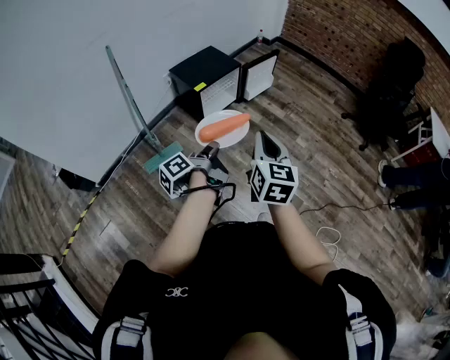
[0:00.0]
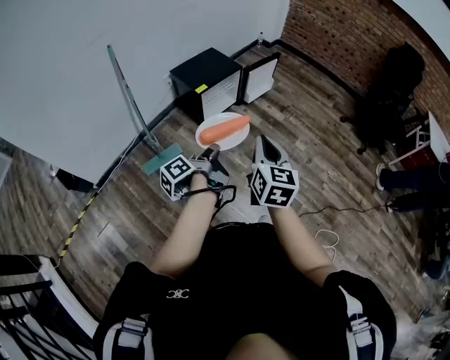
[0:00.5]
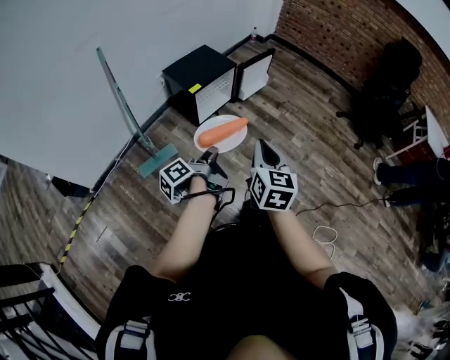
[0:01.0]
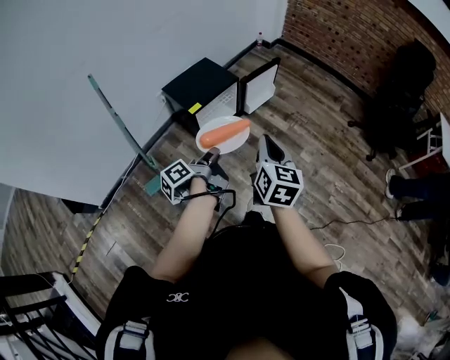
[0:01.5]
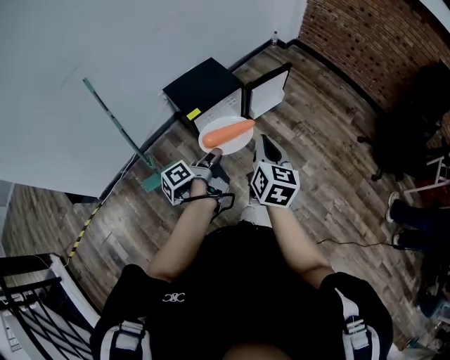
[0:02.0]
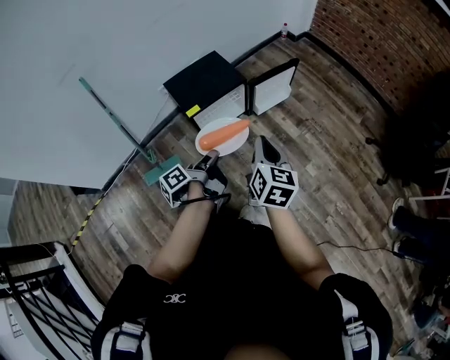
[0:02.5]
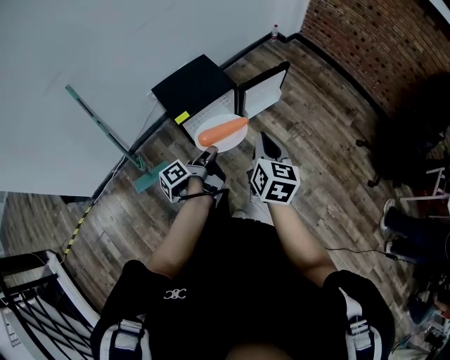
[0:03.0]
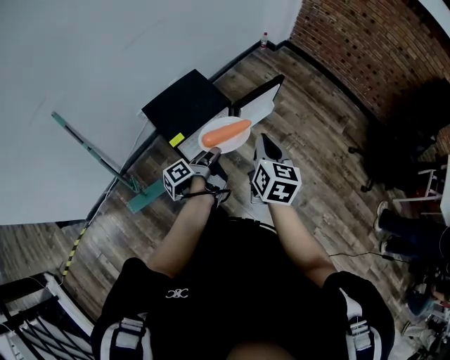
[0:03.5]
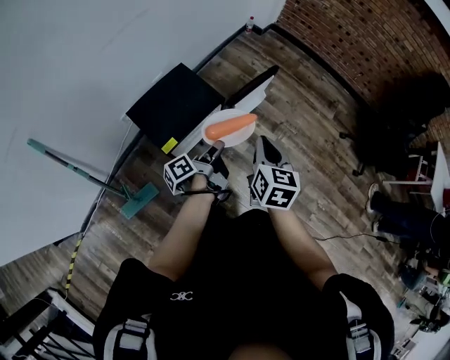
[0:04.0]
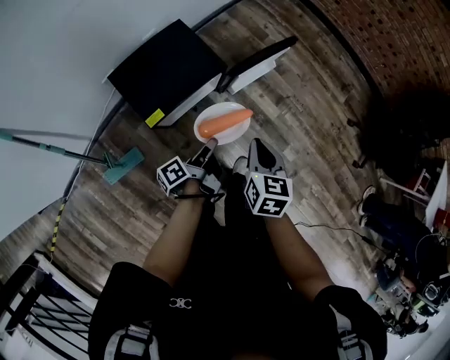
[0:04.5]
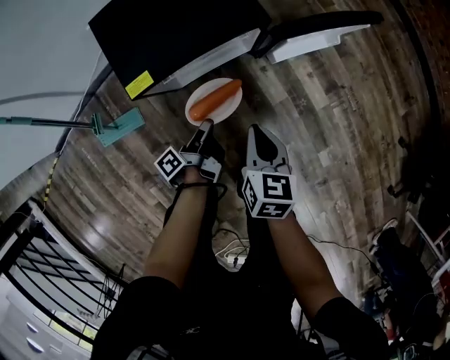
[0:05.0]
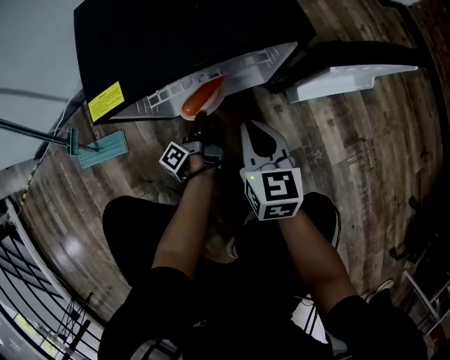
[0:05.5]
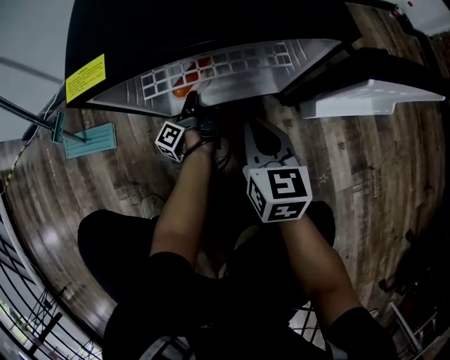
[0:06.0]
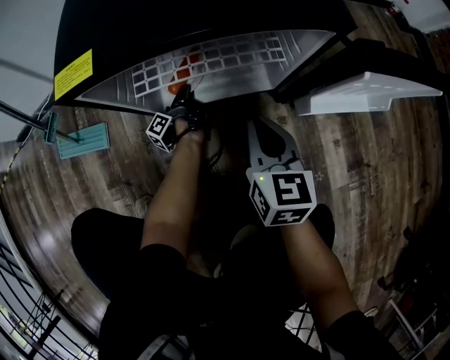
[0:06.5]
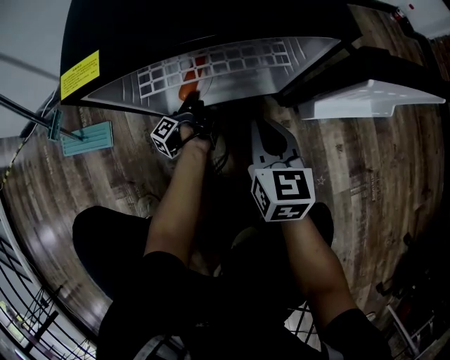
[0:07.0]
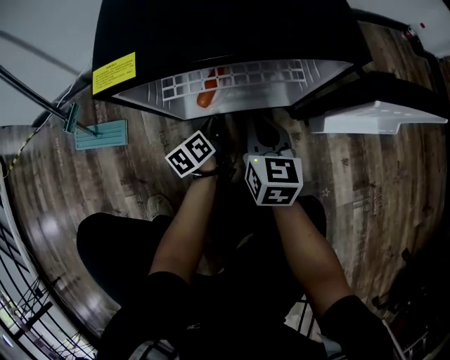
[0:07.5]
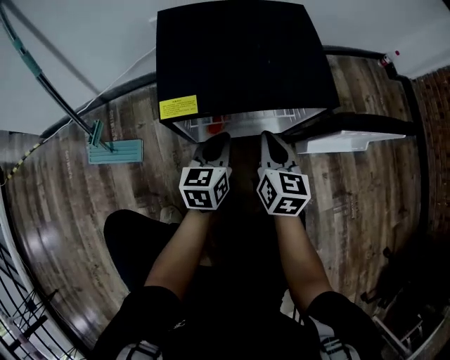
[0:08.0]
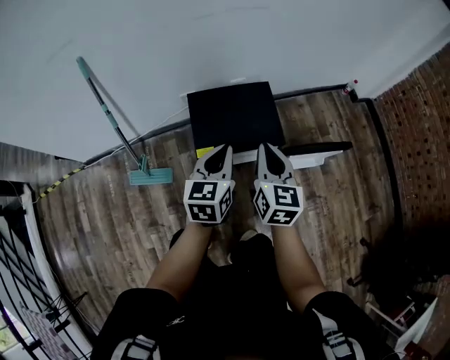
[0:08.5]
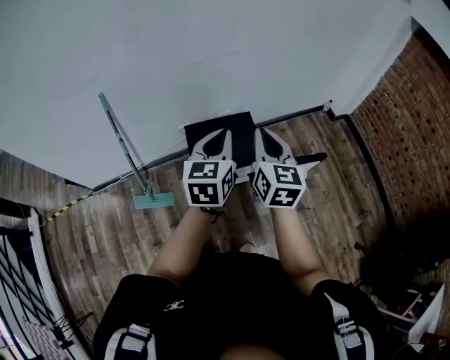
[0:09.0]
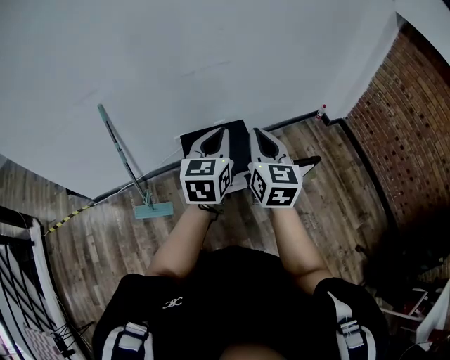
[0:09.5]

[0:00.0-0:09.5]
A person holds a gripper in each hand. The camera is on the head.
0:00.0 to 0:02.0: The right gripper ends up roughly 30 cm from where it was.
0:02.0 to 0:04.0: The right gripper moves approximately 25 cm.
0:04.0 to 0:05.5: The right gripper moves downward, roughly 50 cm, and rotates about 40 degrees.
0:05.5 to 0:07.5: The right gripper travels downward by some 10 cm.
0:07.5 to 0:09.5: The right gripper moves upward, some 80 cm, and swivels approximately 20 degrees.

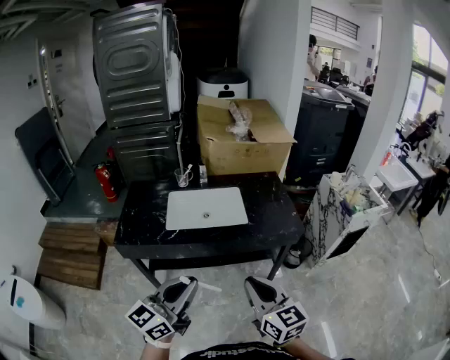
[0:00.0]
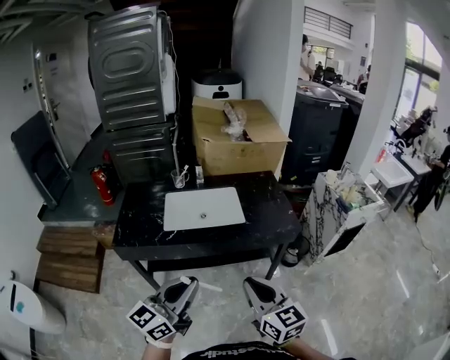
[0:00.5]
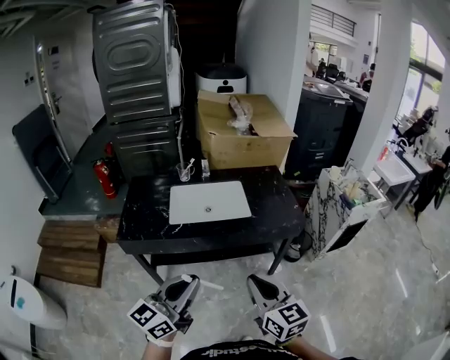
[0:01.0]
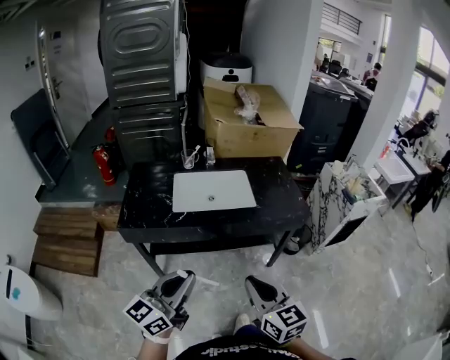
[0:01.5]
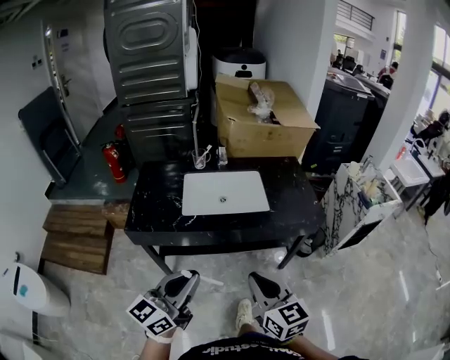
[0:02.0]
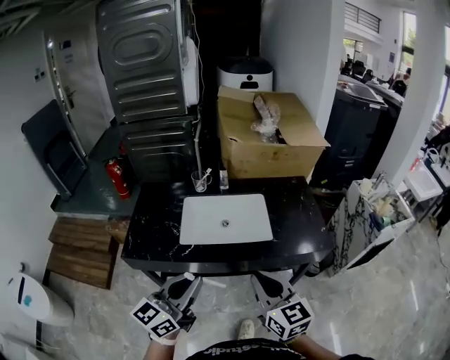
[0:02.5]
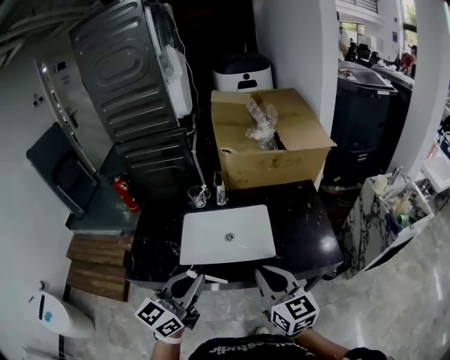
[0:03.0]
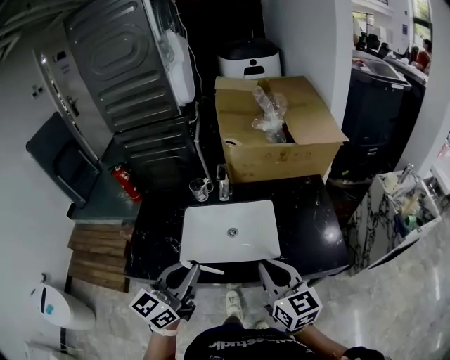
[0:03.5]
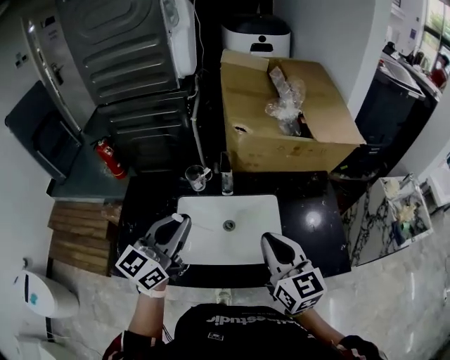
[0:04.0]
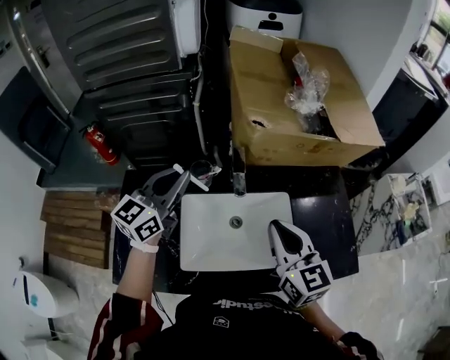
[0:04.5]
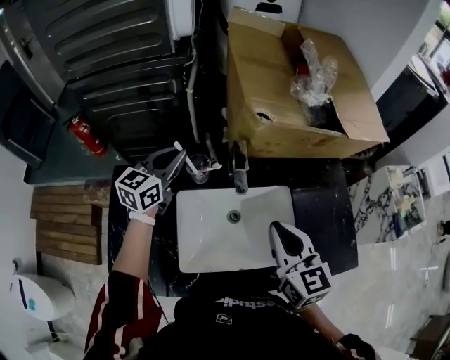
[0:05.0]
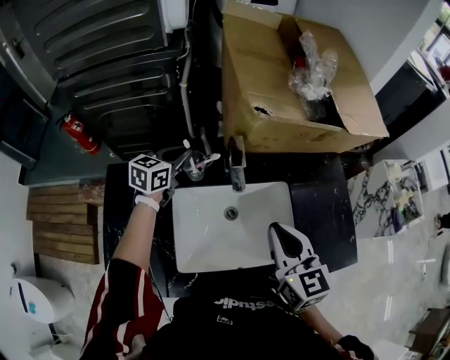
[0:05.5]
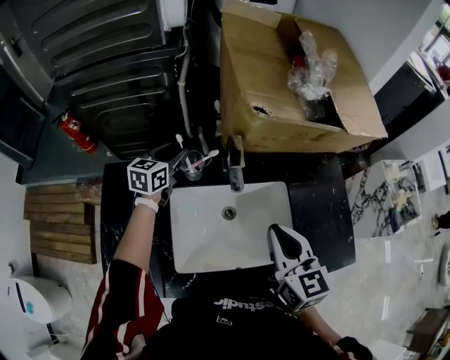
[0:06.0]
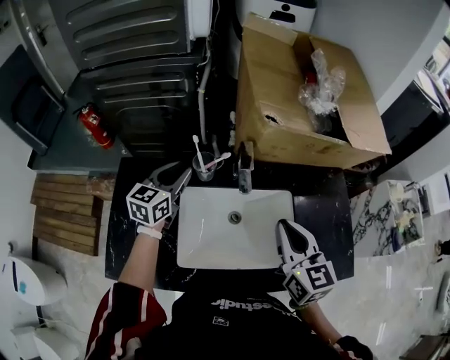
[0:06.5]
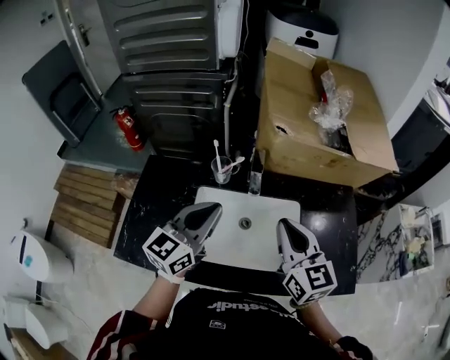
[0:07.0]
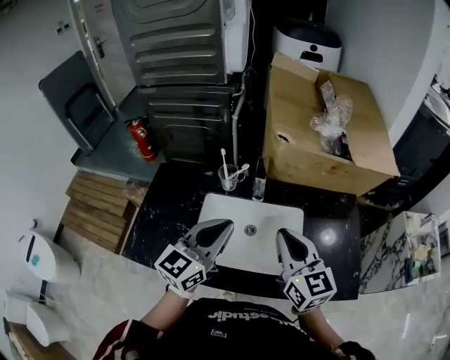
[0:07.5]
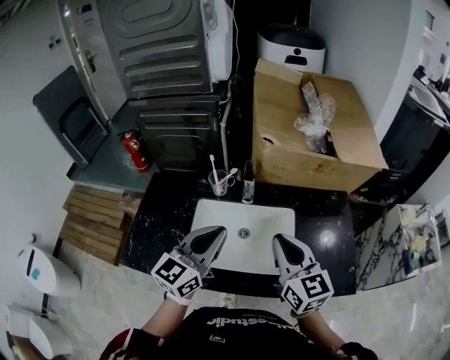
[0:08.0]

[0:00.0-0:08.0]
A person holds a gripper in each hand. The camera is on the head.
0:00.0 to 0:02.0: The grippers both shift to the left by about 10 cm.
0:02.0 to 0:04.0: The pair of grippers is taken forward, about 40 cm.
0:04.0 to 0:06.0: The right gripper is displaced forward, to the left and downward by roughly 15 cm. Meanwhile the left gripper moves forward and downward, approximately 40 cm, rotates approximately 30 degrees, and opens its fingers.
0:06.0 to 0:08.0: The right gripper shifts roughly 10 cm backward and upward, while the left gripper moves backward and upward, roughly 40 cm, swivels approximately 30 degrees, and closes up.

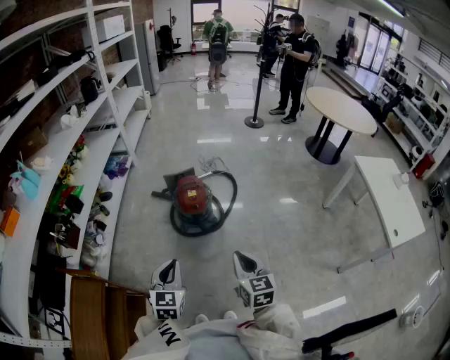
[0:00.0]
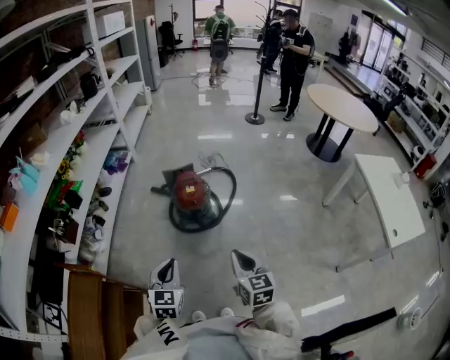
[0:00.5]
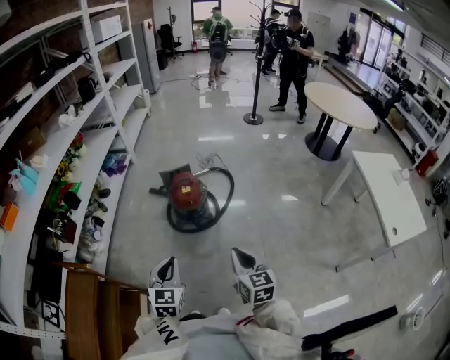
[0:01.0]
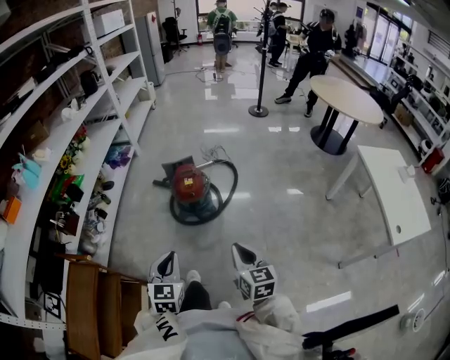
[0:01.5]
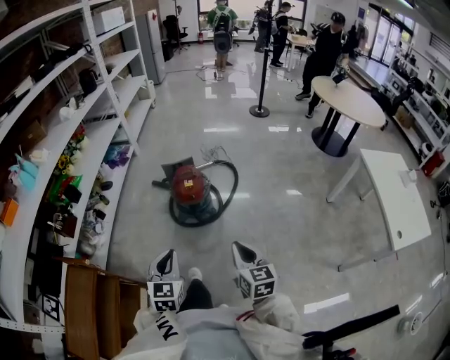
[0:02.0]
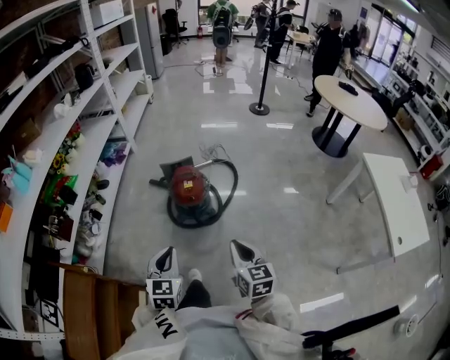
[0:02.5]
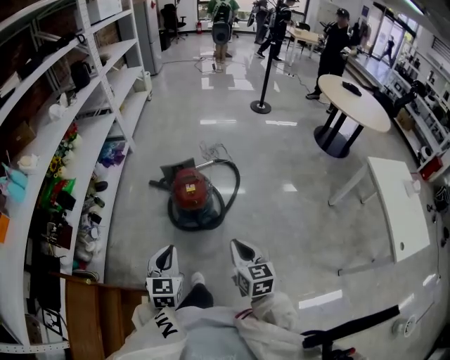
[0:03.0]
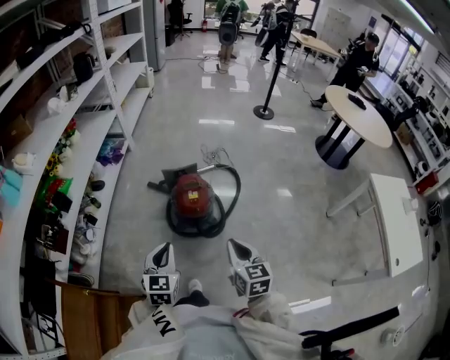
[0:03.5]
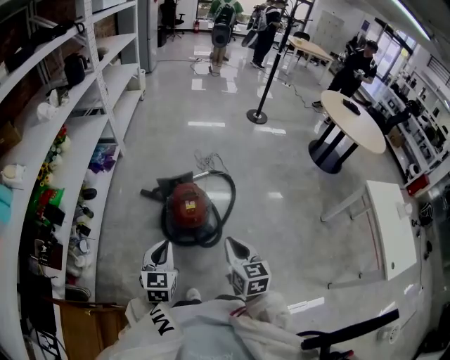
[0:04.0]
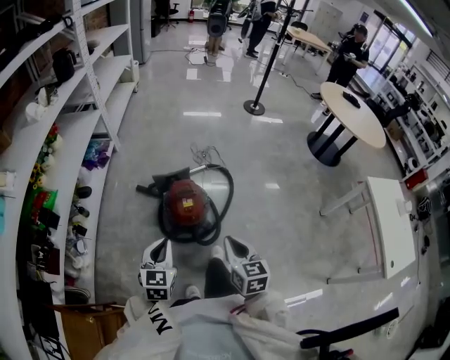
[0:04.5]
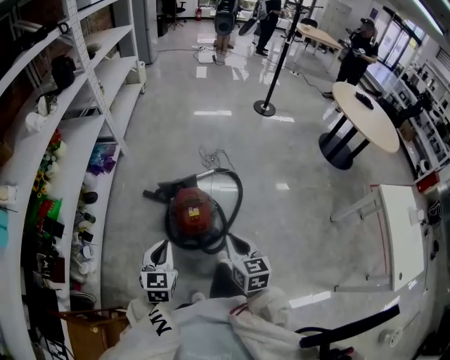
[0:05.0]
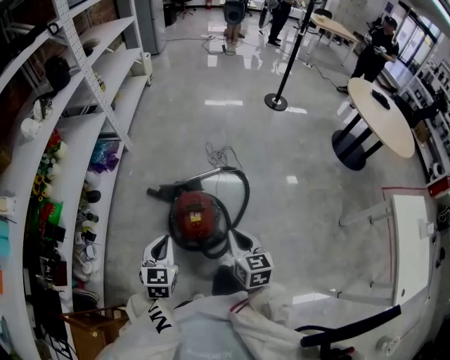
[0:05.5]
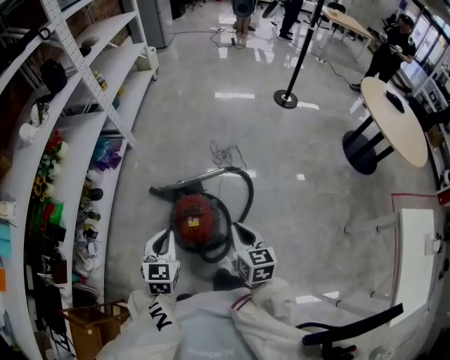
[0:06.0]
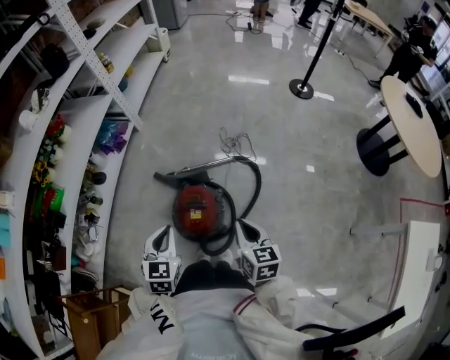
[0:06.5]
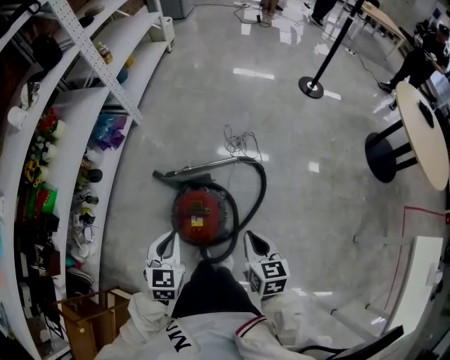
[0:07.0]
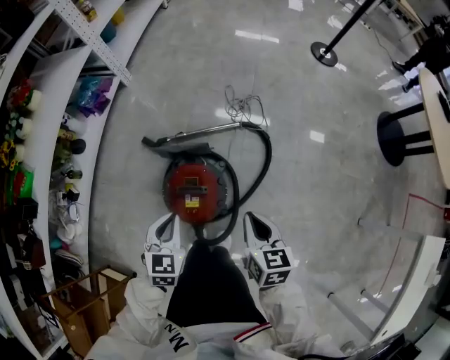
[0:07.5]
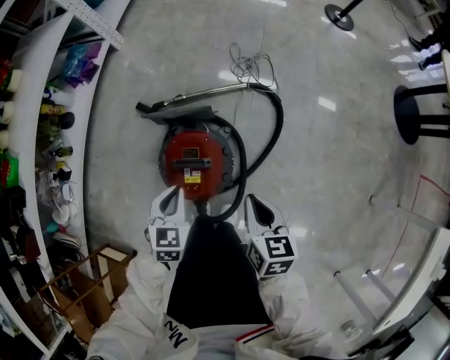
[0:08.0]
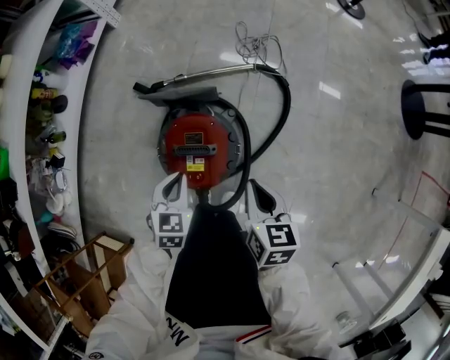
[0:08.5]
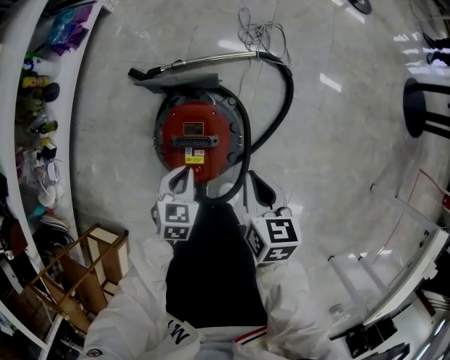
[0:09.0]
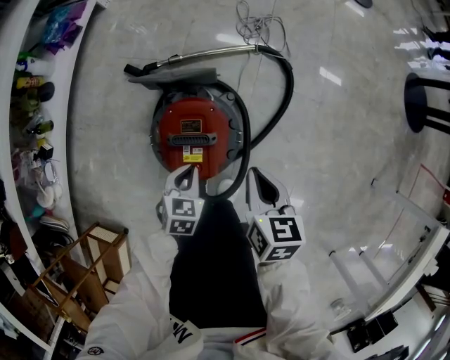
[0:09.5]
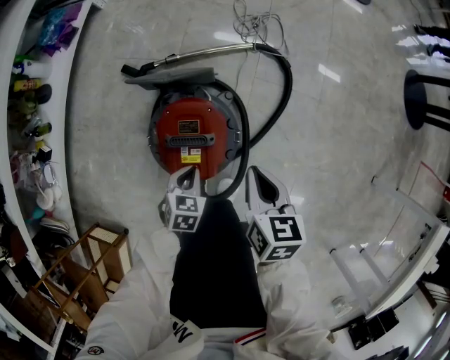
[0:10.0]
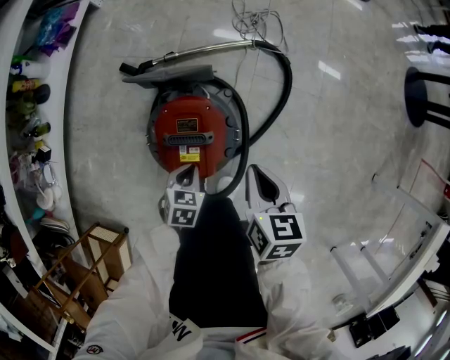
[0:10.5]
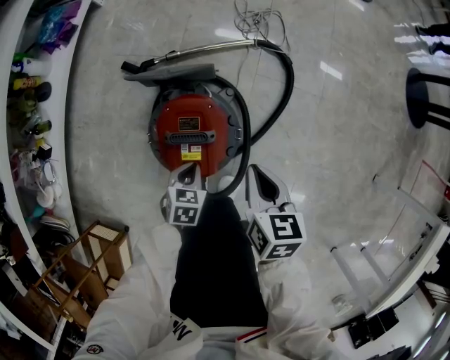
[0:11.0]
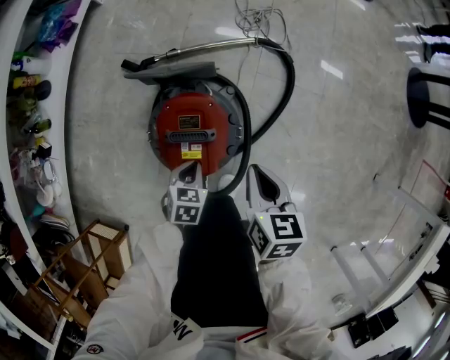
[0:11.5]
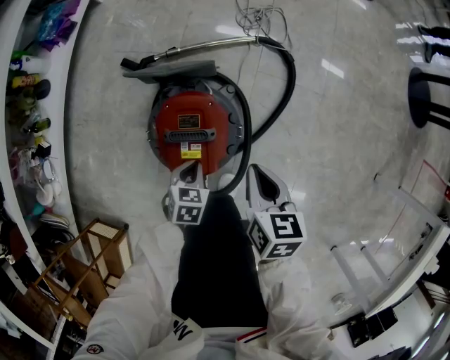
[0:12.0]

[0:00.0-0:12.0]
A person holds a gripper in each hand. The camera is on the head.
0:00.0 to 0:02.0: The grippers both shift to the right by roughly 5 cm.
0:02.0 to 0:04.0: The grippers both shift forward by approximately 25 cm.
0:04.0 to 0:06.0: Both grippers travel together forward, some 20 cm.
0:06.0 to 0:08.0: The grippers both shift downward by about 25 cm.
0:08.0 to 0:10.0: The right gripper goes about 5 cm downward; the left gripper goes about 15 cm downward.
0:10.0 to 0:12.0: The grippers move only a little.
